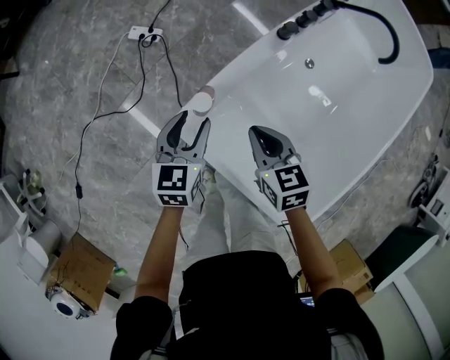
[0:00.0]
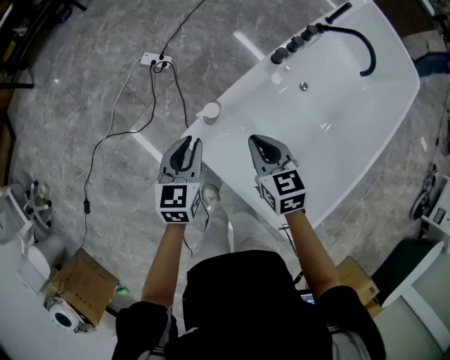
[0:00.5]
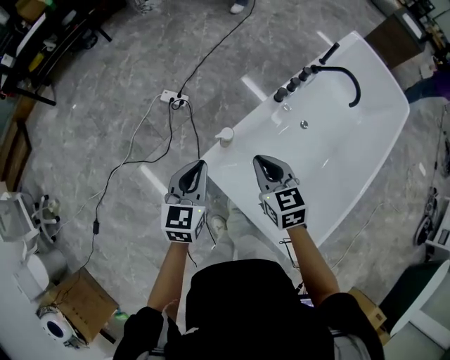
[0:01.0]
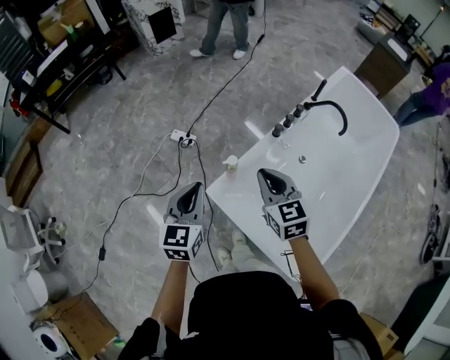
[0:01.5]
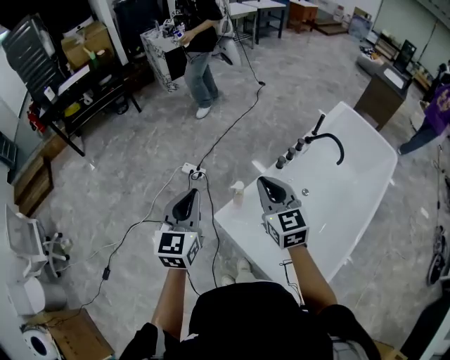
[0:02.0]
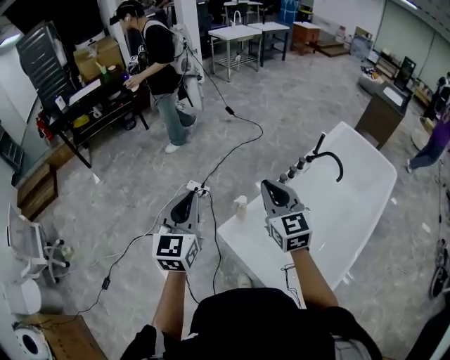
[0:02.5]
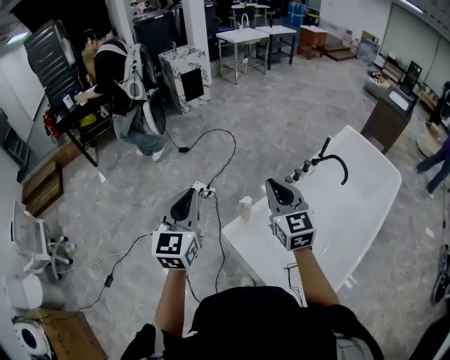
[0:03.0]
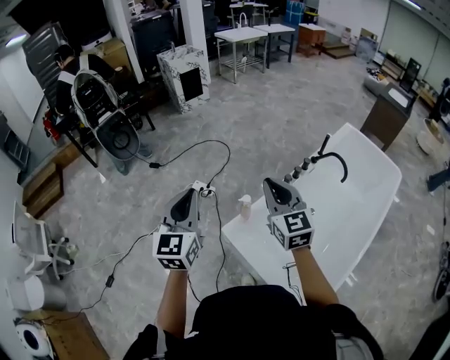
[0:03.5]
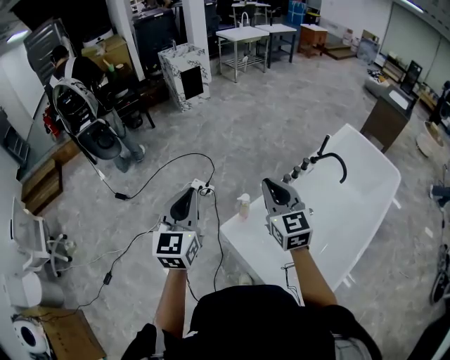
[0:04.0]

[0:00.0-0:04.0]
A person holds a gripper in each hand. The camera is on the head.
0:00.0 to 0:02.0: The two grippers go approximately 35 cm upward. The right gripper angles its fingers upward, by roughly 30 degrees; the left gripper rotates roughly 30 degrees, and closes.
0:02.0 to 0:04.0: The grippers both shift upward by roughly 5 cm.

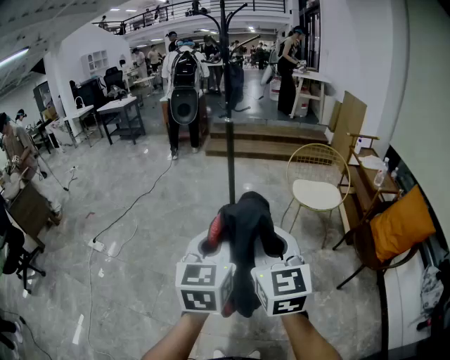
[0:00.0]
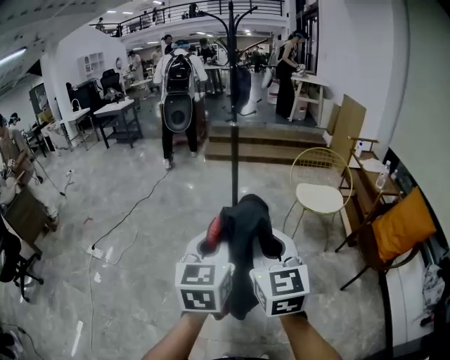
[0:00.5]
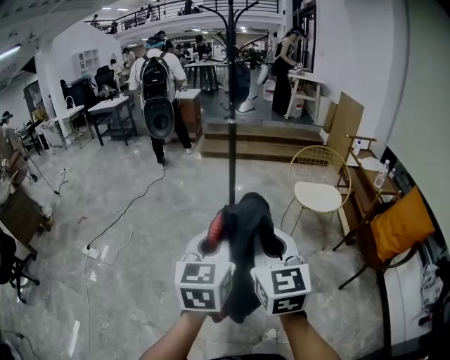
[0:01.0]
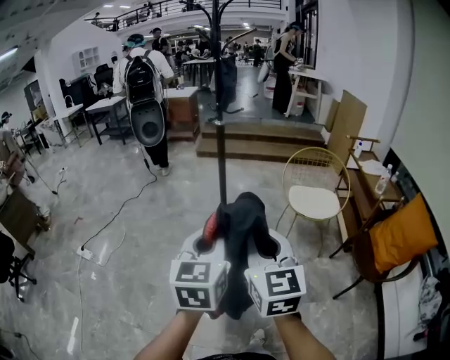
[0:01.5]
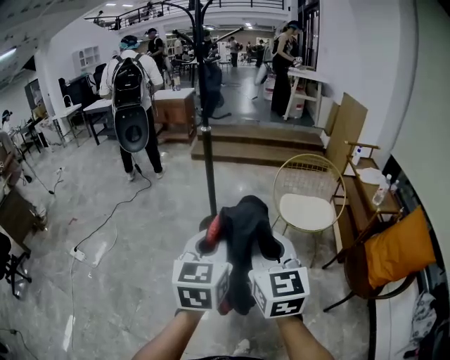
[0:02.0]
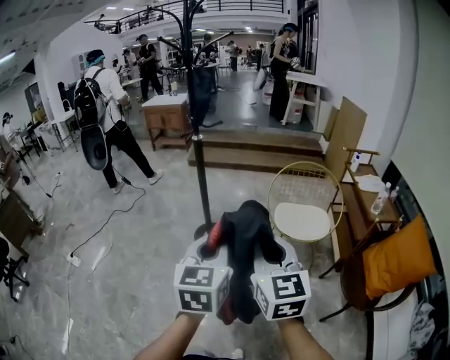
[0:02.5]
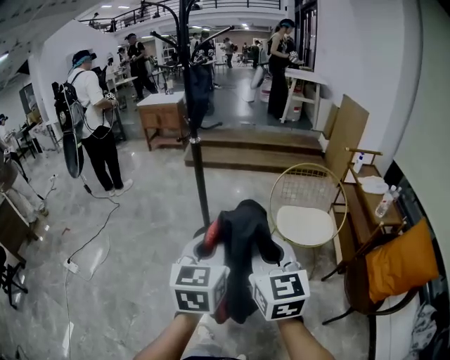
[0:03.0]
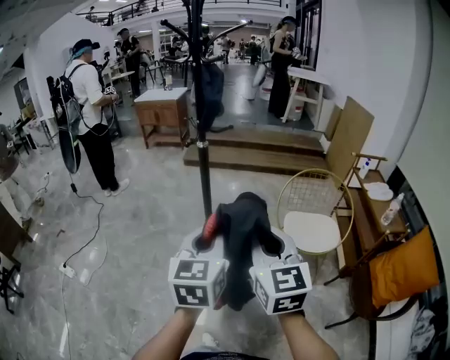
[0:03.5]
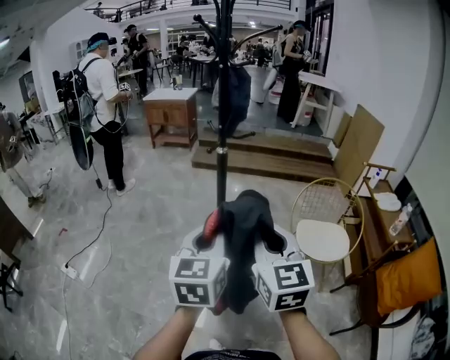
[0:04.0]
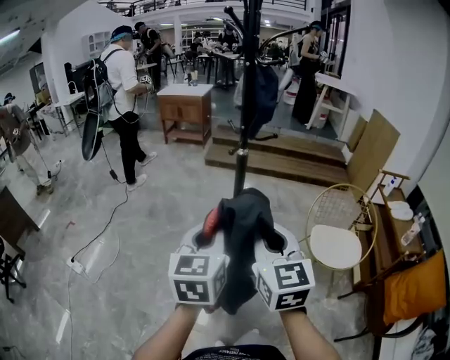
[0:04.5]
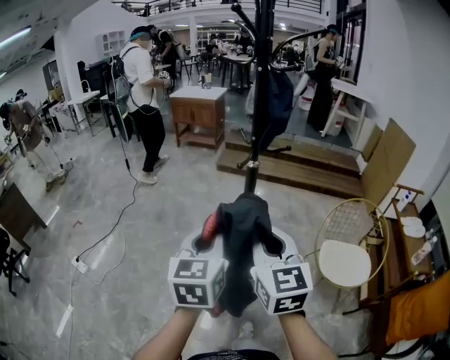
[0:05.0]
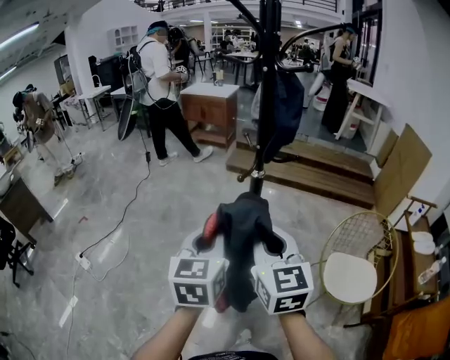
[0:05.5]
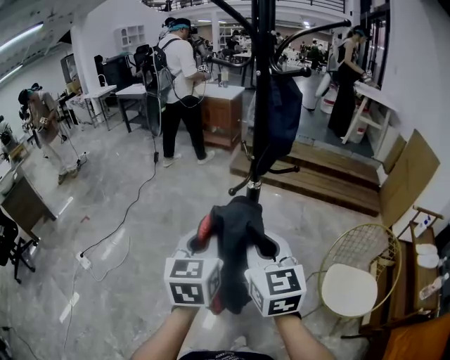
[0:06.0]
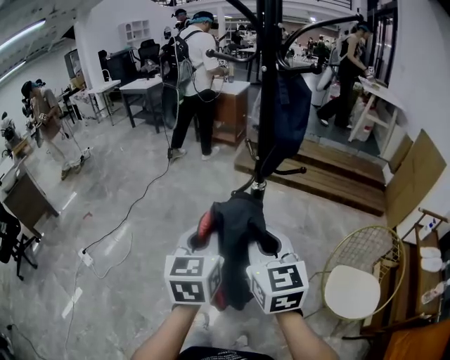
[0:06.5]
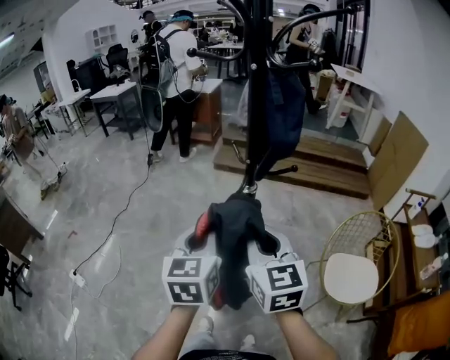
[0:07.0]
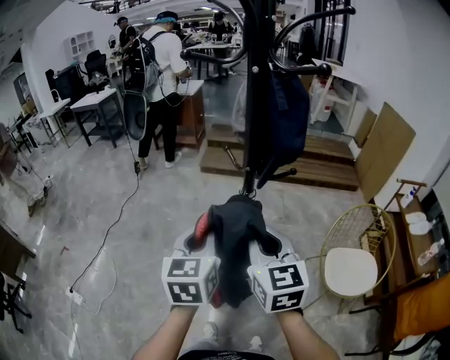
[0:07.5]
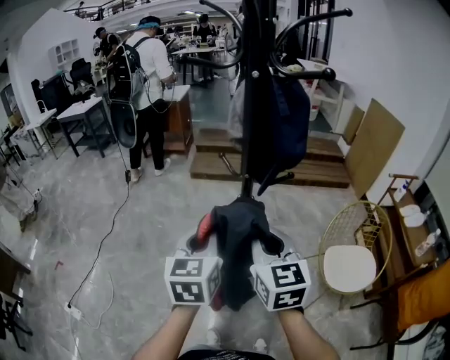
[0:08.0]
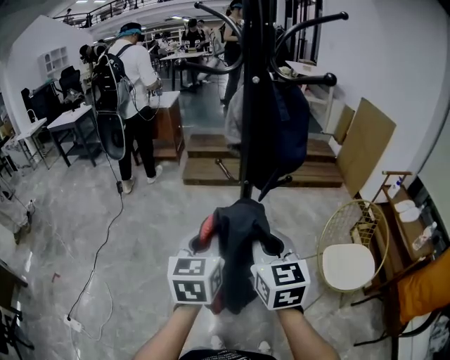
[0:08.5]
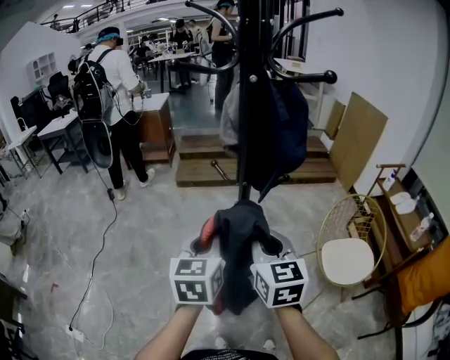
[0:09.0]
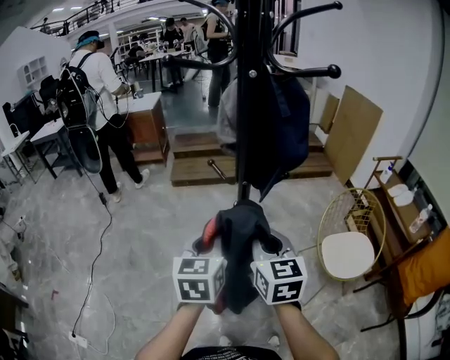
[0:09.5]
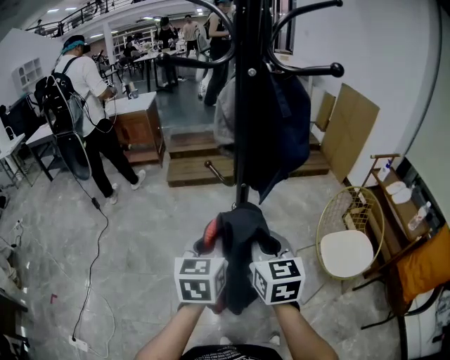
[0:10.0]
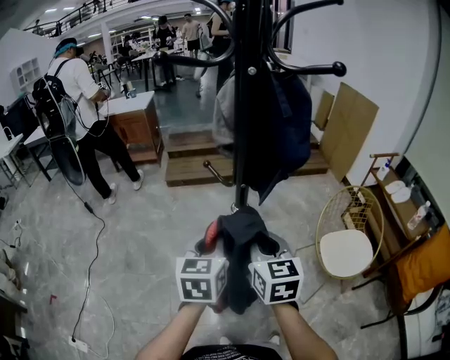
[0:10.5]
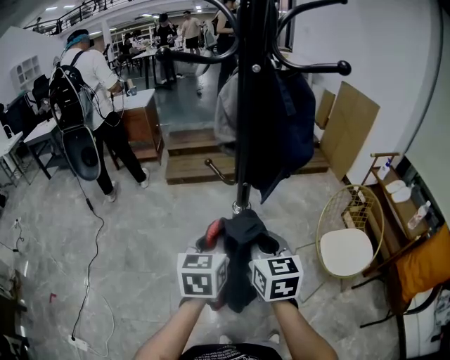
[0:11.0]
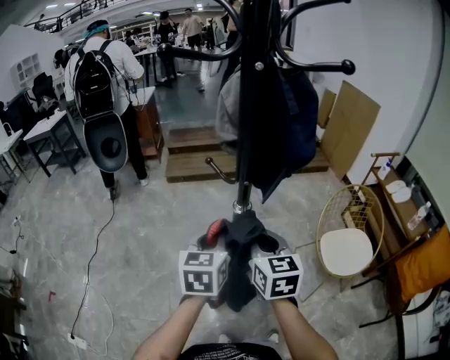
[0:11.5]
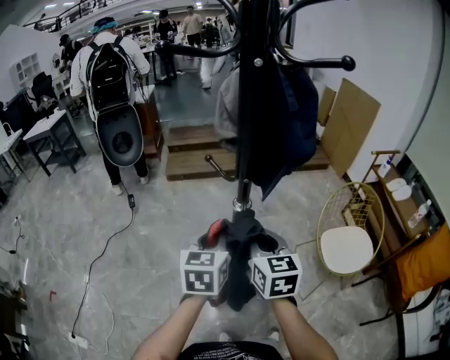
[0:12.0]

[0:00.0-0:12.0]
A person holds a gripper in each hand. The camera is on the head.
0:00.0 to 0:02.0: The grippers both shift forward and to the right by roughly 25 cm.
0:02.0 to 0:04.0: Both grippers travel together forward and to the left, about 30 cm.
0:04.0 to 0:06.0: The grippers both shift forward by approximately 25 cm.
0:06.0 to 0:08.0: Both grippers travel together forward, about 15 cm. The right gripper swivels some 20 degrees.
0:08.0 to 0:10.0: The right gripper is displaced downward and forward by some 5 cm, while the left gripper moves forward, approximately 5 cm.
0:10.0 to 0:12.0: There are only small adjustments of the grippers.

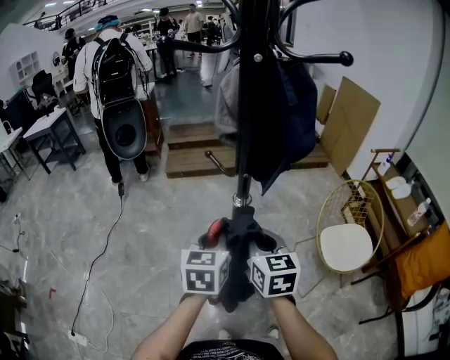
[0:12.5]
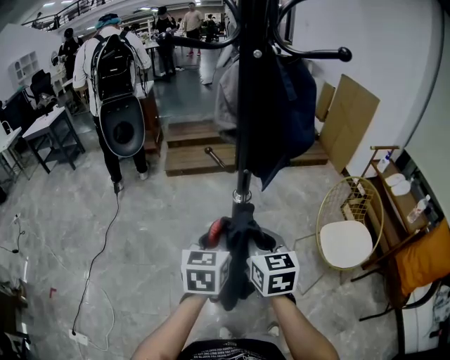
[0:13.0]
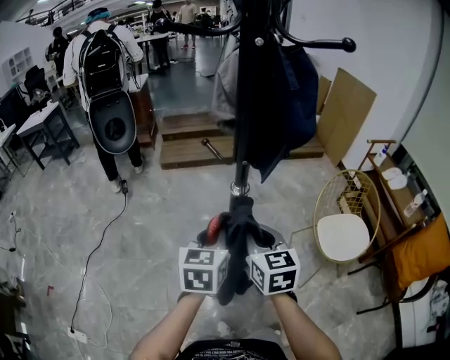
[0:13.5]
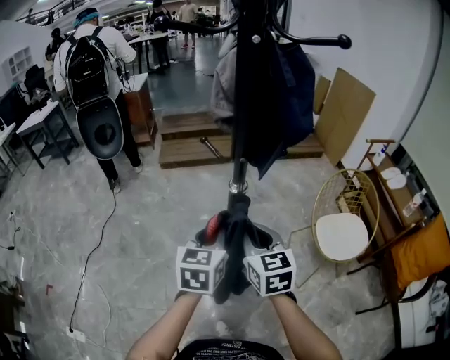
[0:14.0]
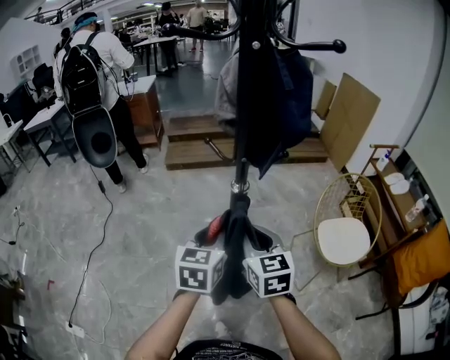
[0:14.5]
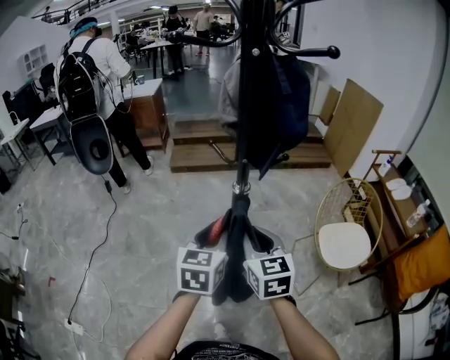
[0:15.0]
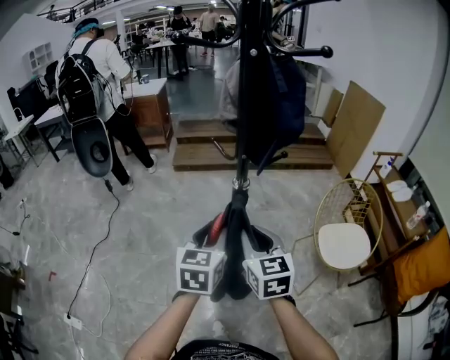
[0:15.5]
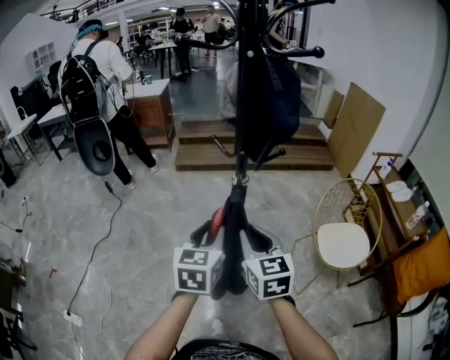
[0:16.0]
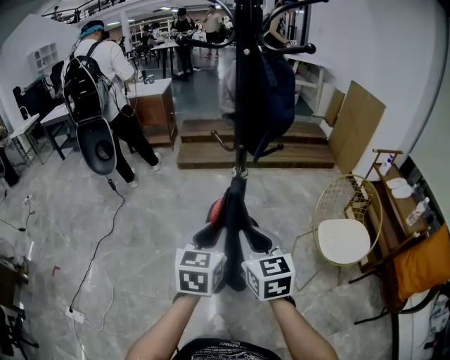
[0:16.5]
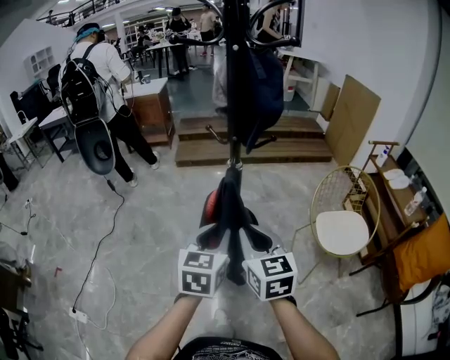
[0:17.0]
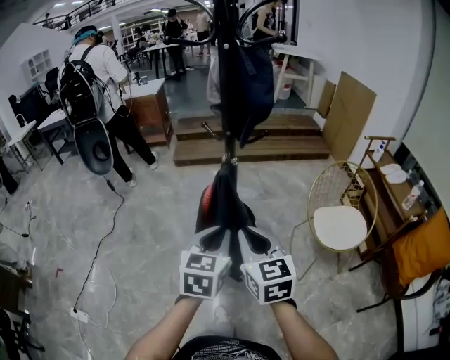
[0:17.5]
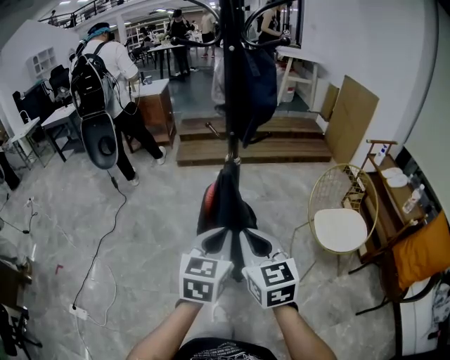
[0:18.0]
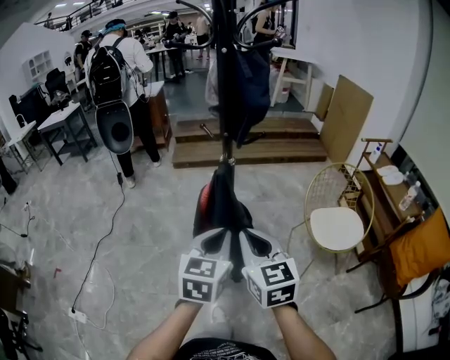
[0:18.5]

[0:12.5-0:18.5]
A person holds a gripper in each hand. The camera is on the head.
0:12.5 to 0:14.5: The grippers make only small movements.
0:14.5 to 0:16.5: The two grippers go about 10 cm backward.
0:16.5 to 0:18.5: Both grippers move backward, approximately 10 cm. The left gripper closes.

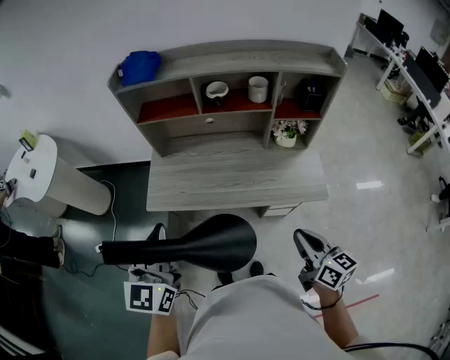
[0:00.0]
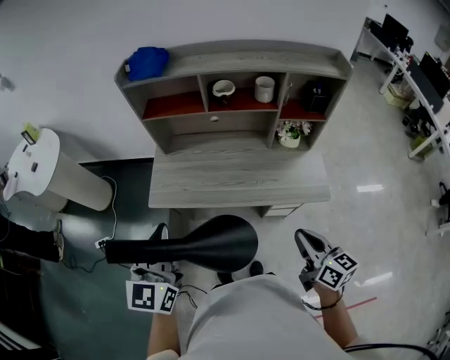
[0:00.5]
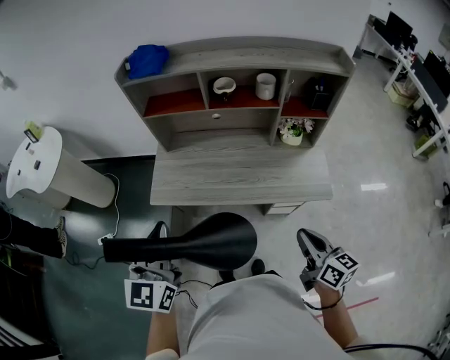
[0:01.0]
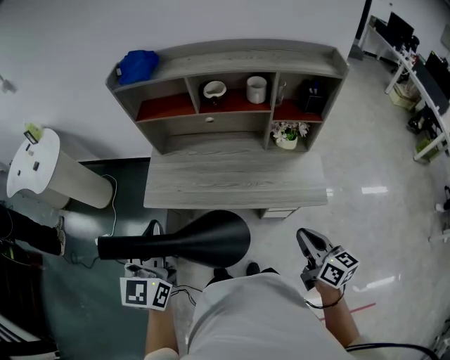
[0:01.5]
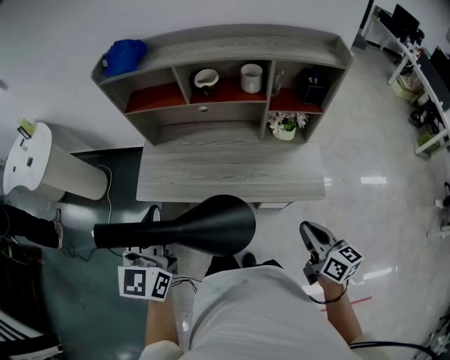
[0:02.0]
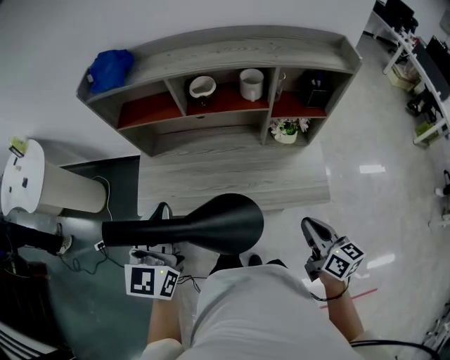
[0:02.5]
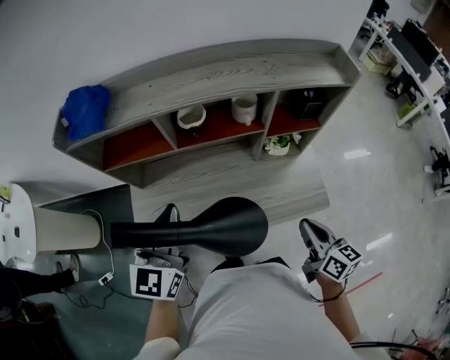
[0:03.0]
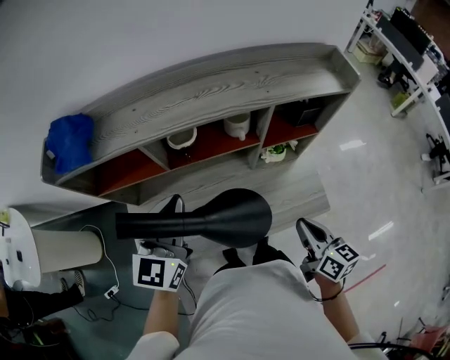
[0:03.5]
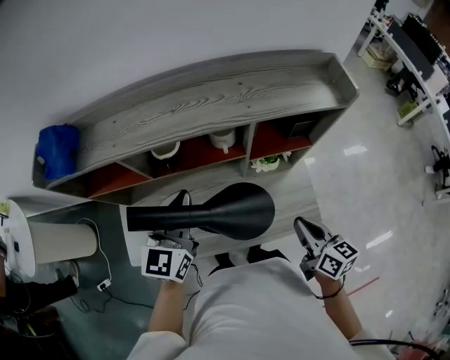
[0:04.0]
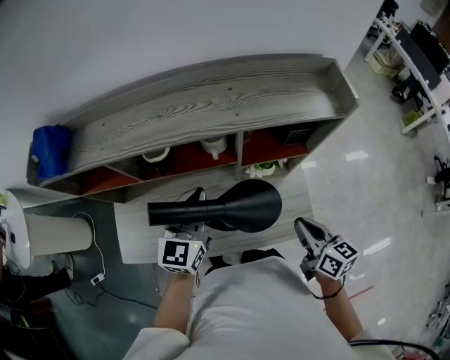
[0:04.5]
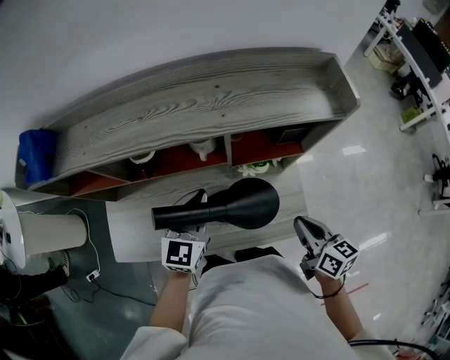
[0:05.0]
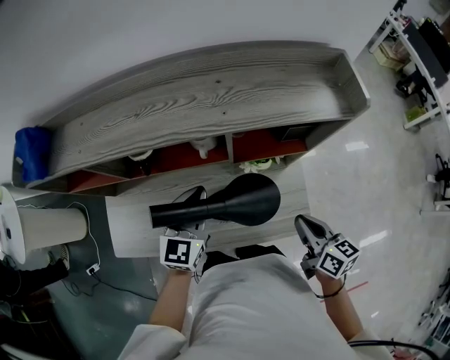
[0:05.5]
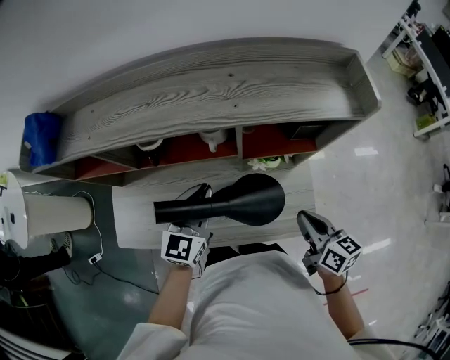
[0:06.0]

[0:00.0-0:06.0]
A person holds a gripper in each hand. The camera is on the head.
0:00.0 to 0:02.0: Both grippers move to the right, some 10 cm.
0:02.0 to 0:04.0: Both grippers travel together forward, roughly 30 cm. The left gripper changes its angle by about 20 degrees.
0:04.0 to 0:06.0: The left gripper moves downward and to the right, about 15 cm. The right gripper is displaced to the right by about 5 cm.
